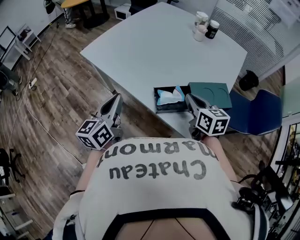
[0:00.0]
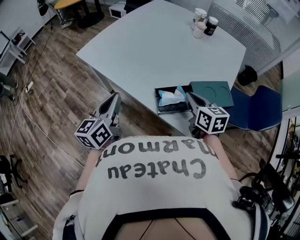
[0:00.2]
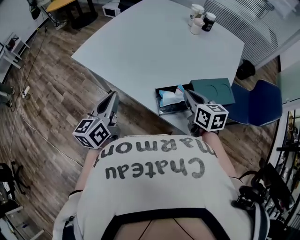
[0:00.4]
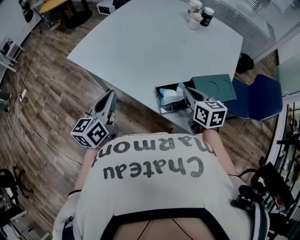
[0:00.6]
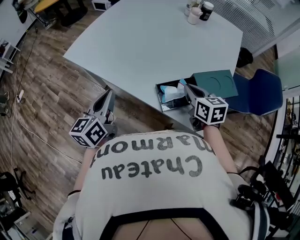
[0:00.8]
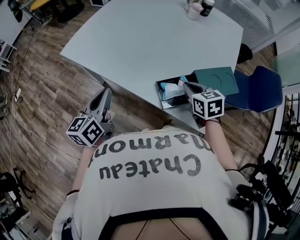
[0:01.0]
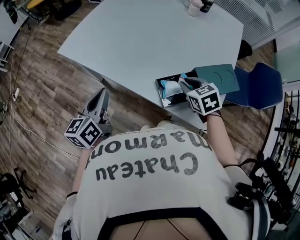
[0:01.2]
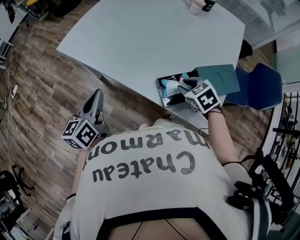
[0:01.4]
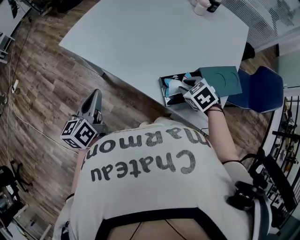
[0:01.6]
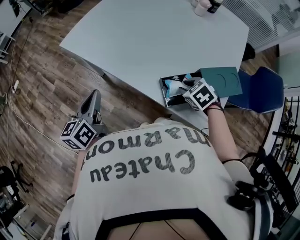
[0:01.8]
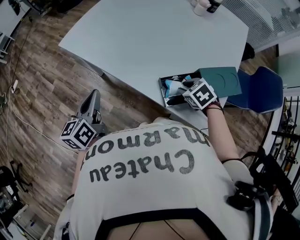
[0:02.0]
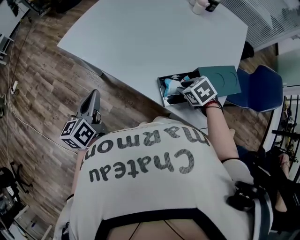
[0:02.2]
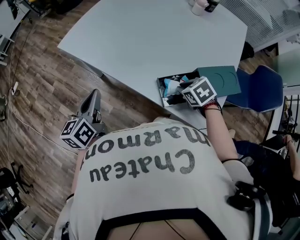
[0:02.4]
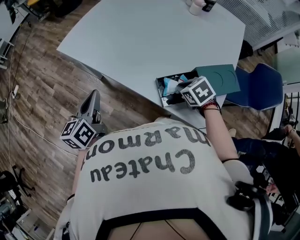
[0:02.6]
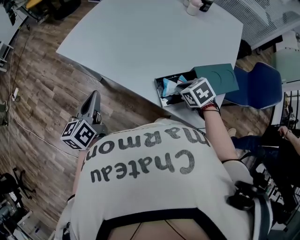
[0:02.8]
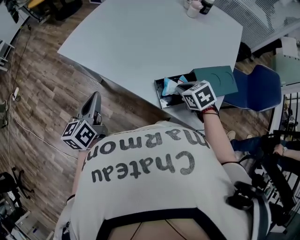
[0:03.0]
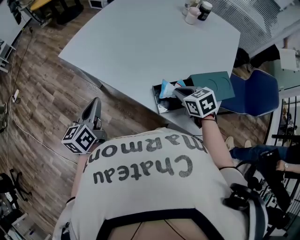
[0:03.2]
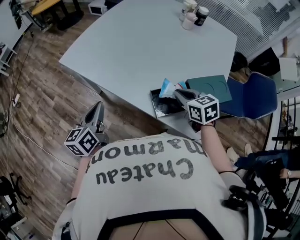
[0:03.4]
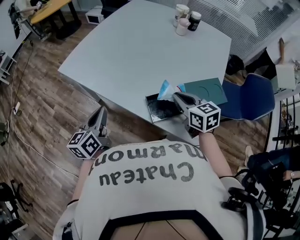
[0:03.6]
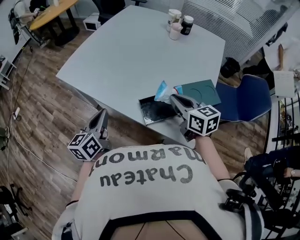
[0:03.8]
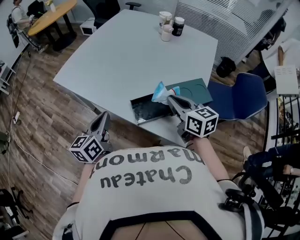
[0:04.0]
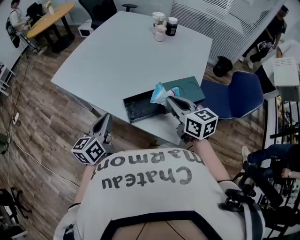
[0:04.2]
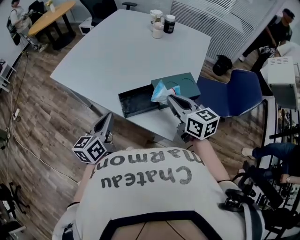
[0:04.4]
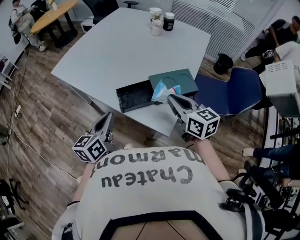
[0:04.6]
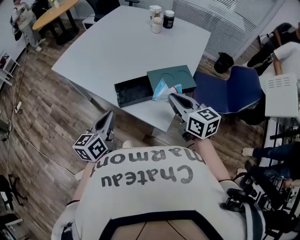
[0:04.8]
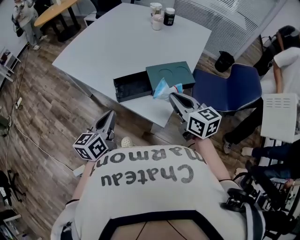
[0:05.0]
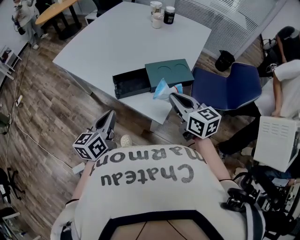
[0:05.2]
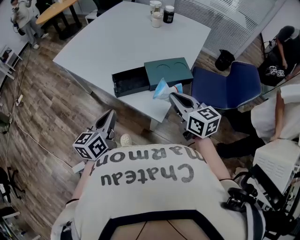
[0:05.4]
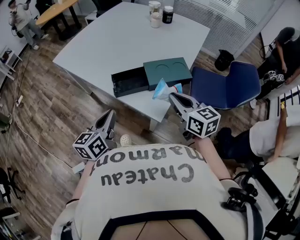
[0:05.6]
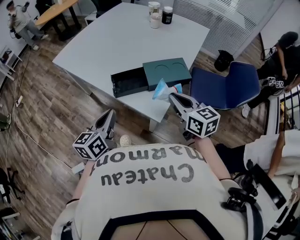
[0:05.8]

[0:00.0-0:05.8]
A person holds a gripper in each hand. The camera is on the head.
0:00.0 to 0:01.4: The left gripper goes approximately 15 cm to the left, forward and downward. The right gripper travels downward by about 10 cm, tips its fingers downward by roughly 30 degrees, and opens.
0:01.4 to 0:02.8: The right gripper closes up.
0:02.8 to 0:04.4: The right gripper heads upward, to the right and backward, covering approximately 25 cm, and points its fingers approximately 50 degrees further upward; the left gripper goes roughly 25 cm to the right and backward.
0:04.4 to 0:05.8: The two grippers go roughly 10 cm backward and to the right.

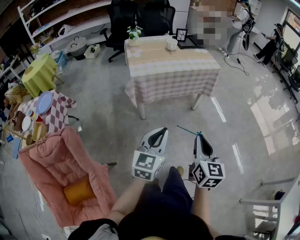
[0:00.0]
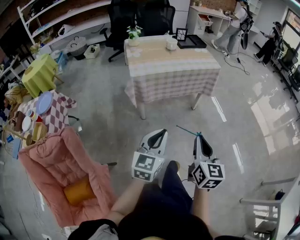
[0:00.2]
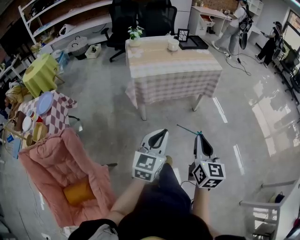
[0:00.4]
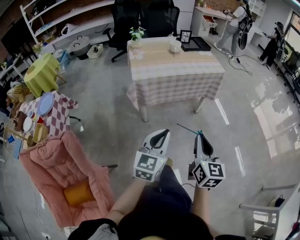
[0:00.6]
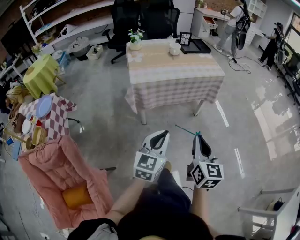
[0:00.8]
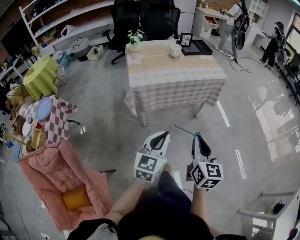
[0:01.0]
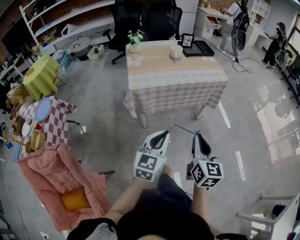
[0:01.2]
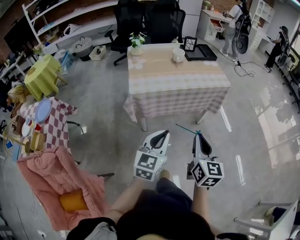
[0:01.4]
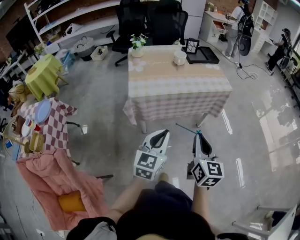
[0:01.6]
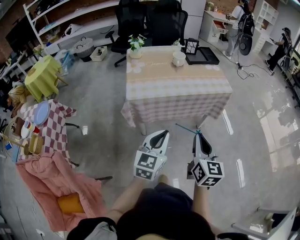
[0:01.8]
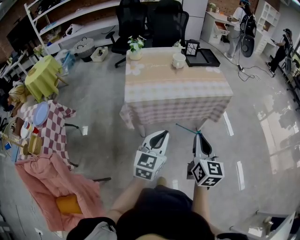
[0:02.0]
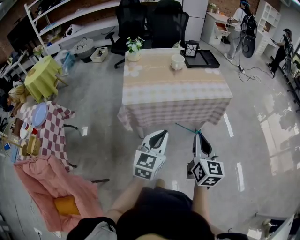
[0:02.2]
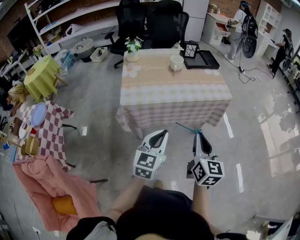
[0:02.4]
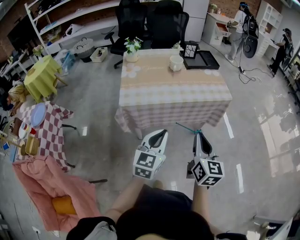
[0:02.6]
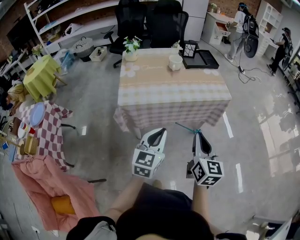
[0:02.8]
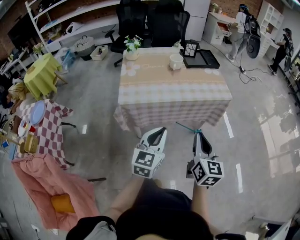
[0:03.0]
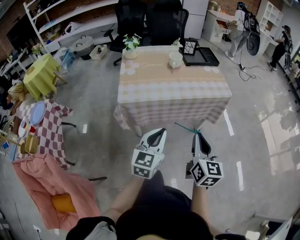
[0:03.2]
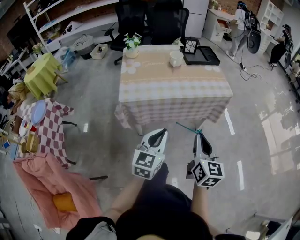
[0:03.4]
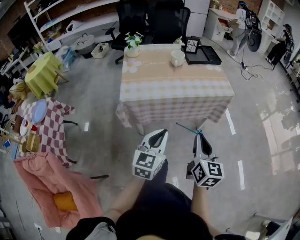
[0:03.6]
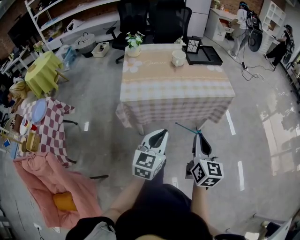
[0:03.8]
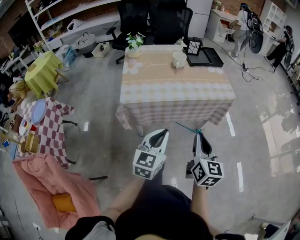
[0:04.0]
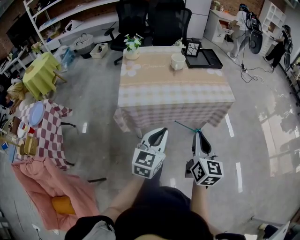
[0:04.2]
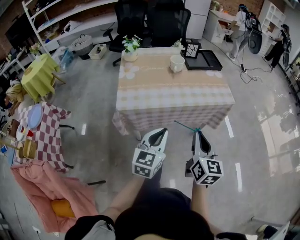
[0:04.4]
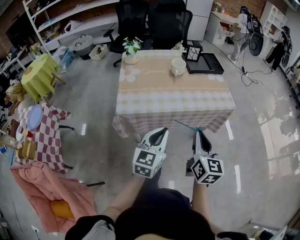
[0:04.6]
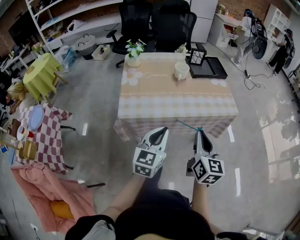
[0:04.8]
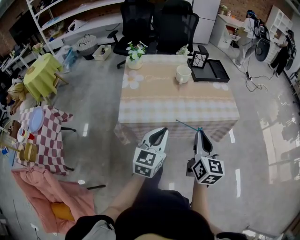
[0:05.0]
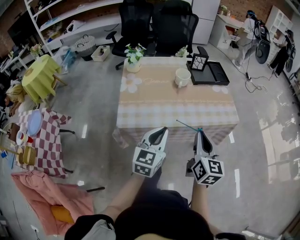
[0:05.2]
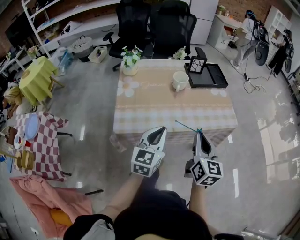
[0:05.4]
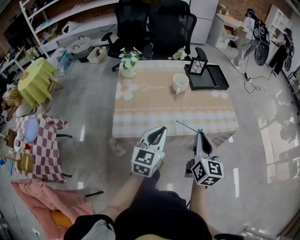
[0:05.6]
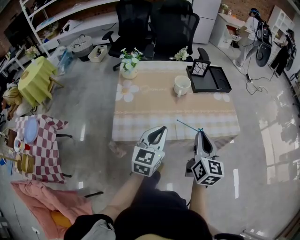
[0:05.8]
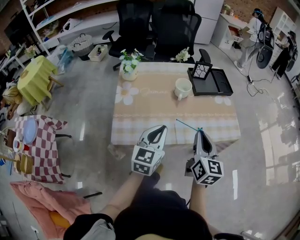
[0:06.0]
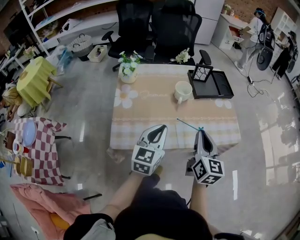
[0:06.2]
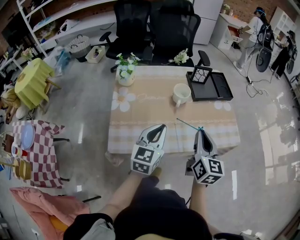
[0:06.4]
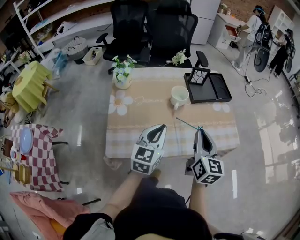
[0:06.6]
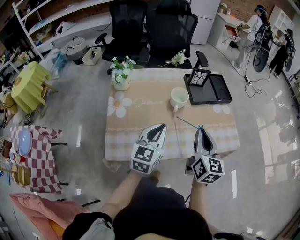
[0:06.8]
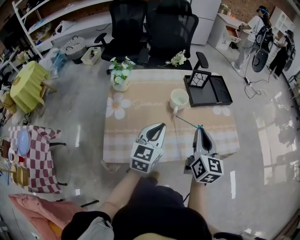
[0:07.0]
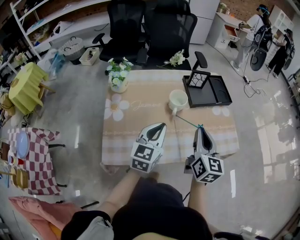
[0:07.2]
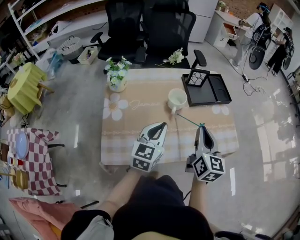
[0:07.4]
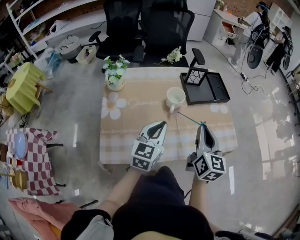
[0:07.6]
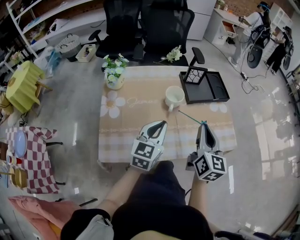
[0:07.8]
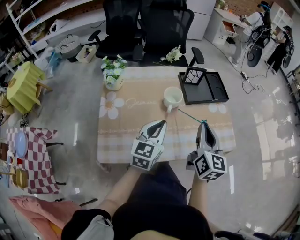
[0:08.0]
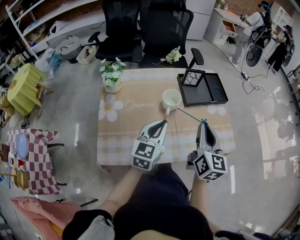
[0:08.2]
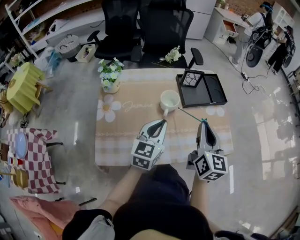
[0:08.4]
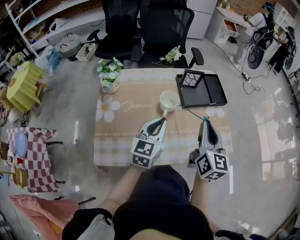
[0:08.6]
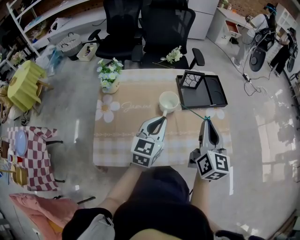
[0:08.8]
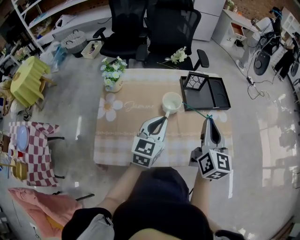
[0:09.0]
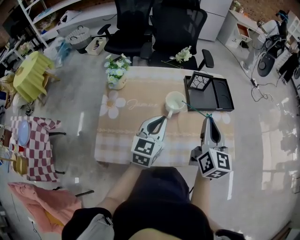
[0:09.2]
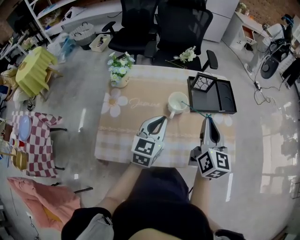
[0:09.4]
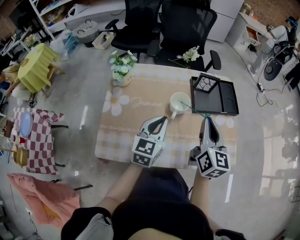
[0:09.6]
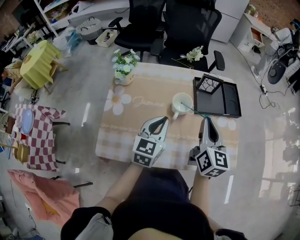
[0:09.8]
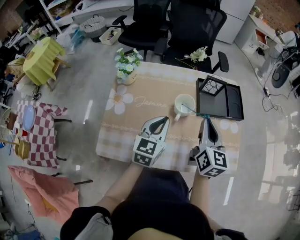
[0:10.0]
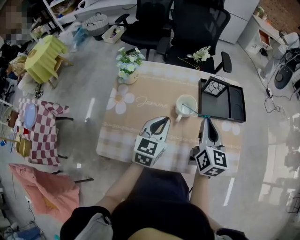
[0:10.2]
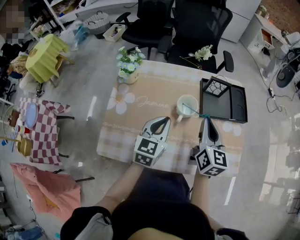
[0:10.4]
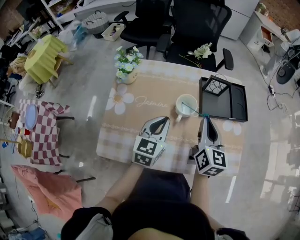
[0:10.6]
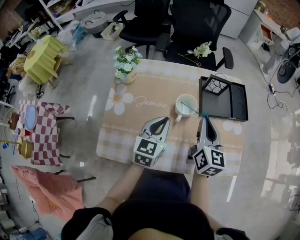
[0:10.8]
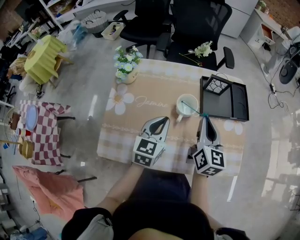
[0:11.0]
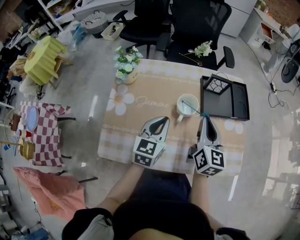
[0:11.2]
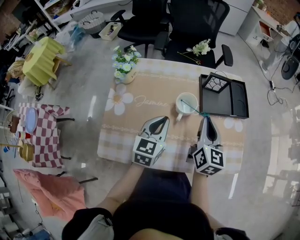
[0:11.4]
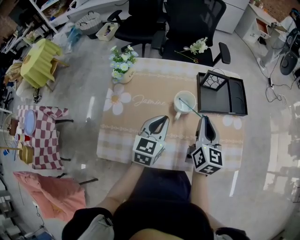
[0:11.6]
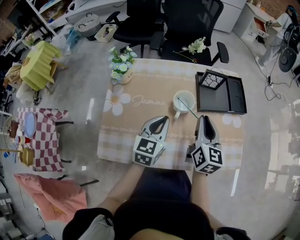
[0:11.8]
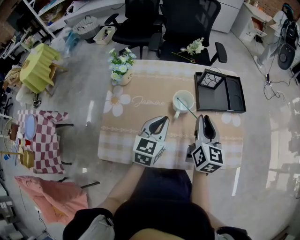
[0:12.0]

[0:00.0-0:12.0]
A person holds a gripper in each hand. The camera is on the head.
0:00.0 to 0:01.6: The grippers both shift forward by some 20 cm.
0:01.6 to 0:03.0: The right gripper is displaced forward and to the right by approximately 10 cm. Meanwhile the left gripper is displaced forward by approximately 10 cm.
0:03.0 to 0:04.4: The left gripper shifts by approximately 5 cm. The right gripper shifts roughly 5 cm forward.
0:04.4 to 0:06.0: Both grippers move forward, some 20 cm.
0:06.0 to 0:07.6: Both grippers move forward, roughly 10 cm.
0:07.6 to 0:09.0: The grippers both shift forward by roughly 5 cm.
0:09.0 to 0:10.4: The left gripper changes place by approximately 5 cm. Meanwhile the right gripper moves forward, downward and to the left, approximately 10 cm.
0:10.4 to 0:12.0: There are only small adjustments of the grippers.

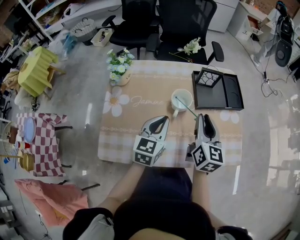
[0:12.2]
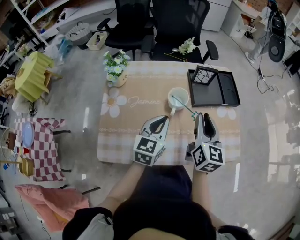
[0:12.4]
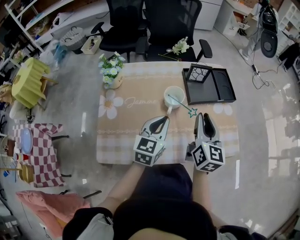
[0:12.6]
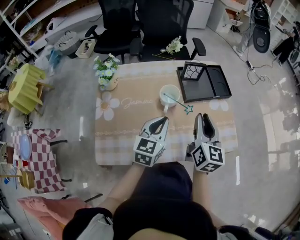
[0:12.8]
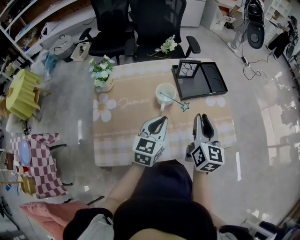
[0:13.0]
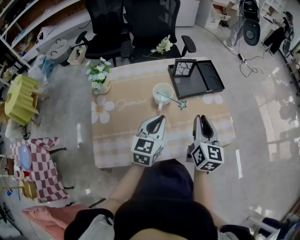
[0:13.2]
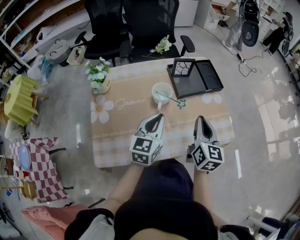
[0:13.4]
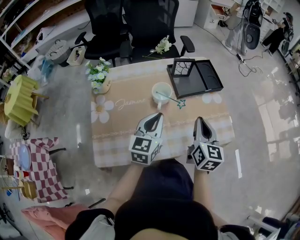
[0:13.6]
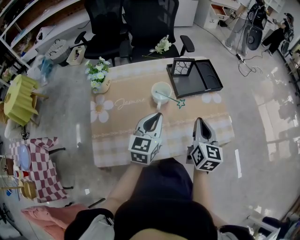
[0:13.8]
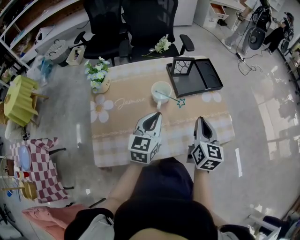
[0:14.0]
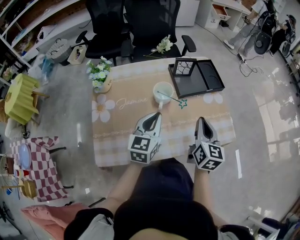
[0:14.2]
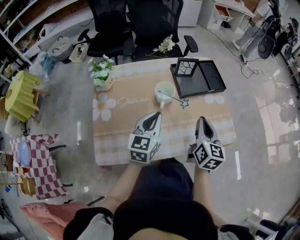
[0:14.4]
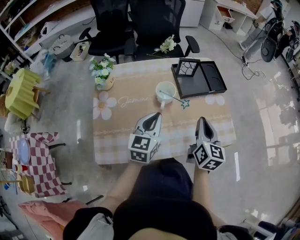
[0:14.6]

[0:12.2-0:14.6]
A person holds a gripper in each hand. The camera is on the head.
0:12.2 to 0:13.4: The right gripper shifts some 10 cm to the right and backward; the left gripper ends up roughly 5 cm from where it was.
0:13.4 to 0:14.6: The grippers stay close to where they were, moving slightly.

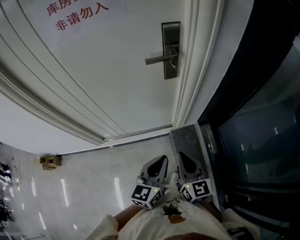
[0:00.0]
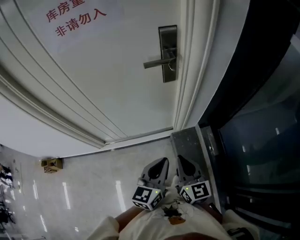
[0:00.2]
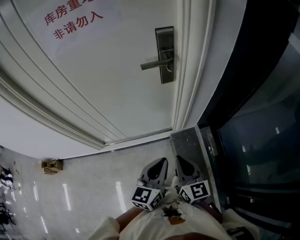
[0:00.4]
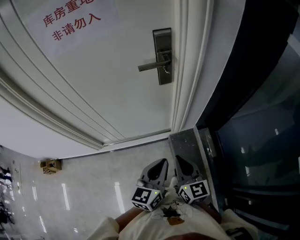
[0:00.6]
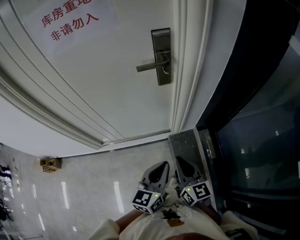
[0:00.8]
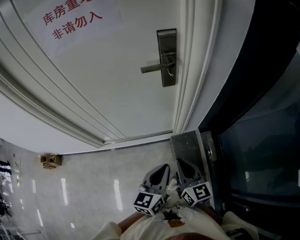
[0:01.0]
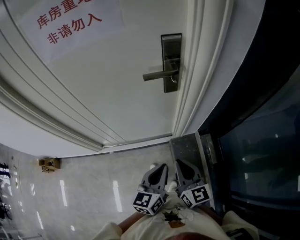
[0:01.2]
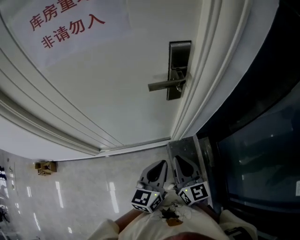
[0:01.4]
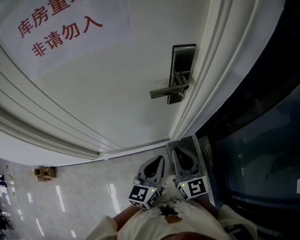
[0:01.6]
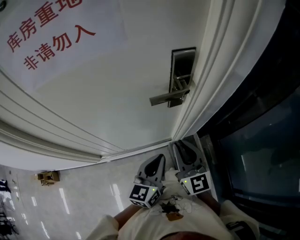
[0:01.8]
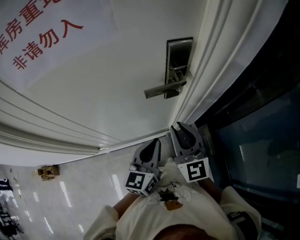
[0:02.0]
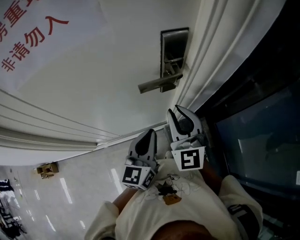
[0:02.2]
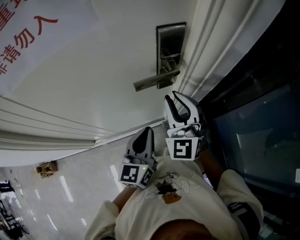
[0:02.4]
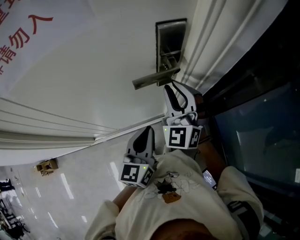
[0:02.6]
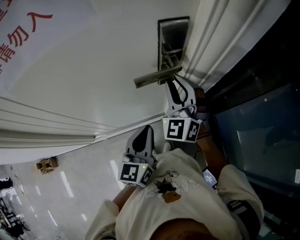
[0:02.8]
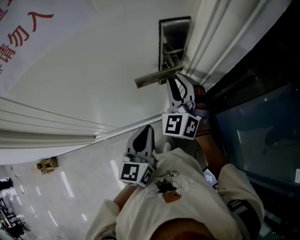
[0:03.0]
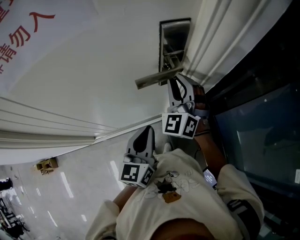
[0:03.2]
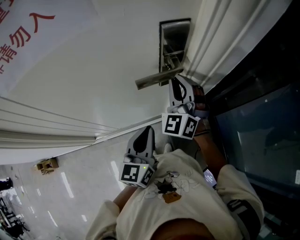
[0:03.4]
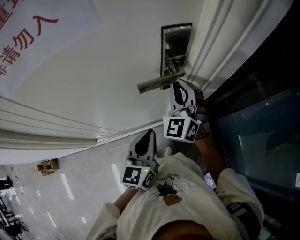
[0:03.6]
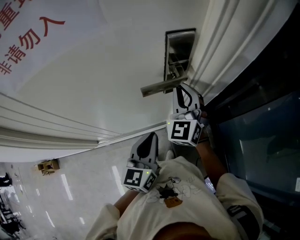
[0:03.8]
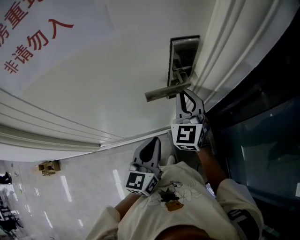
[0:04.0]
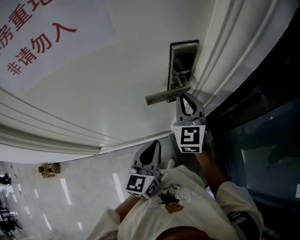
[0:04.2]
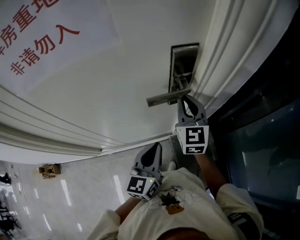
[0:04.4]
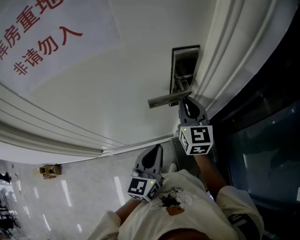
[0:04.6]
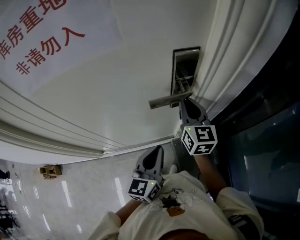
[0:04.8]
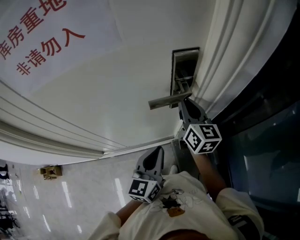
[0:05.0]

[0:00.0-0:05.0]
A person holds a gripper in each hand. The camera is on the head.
0:00.0 to 0:01.6: Both grippers travel together forward, about 15 cm.
0:01.6 to 0:03.4: The left gripper goes approximately 10 cm forward, while the right gripper is displaced forward by about 20 cm, and rotates around the line of its fingers by roughly 50 degrees, counterclockwise from behind.
0:03.4 to 0:05.0: The right gripper twists roughly 70 degrees clockwise, seen from behind.
